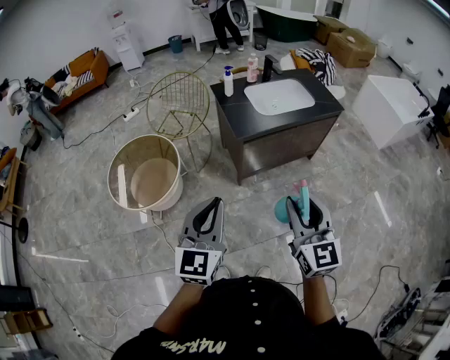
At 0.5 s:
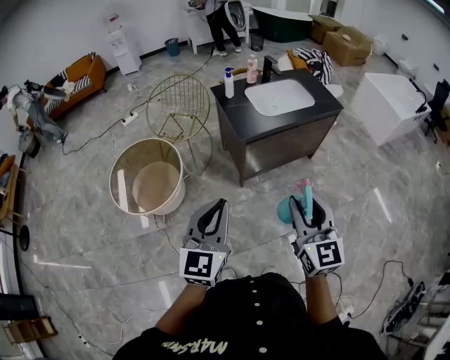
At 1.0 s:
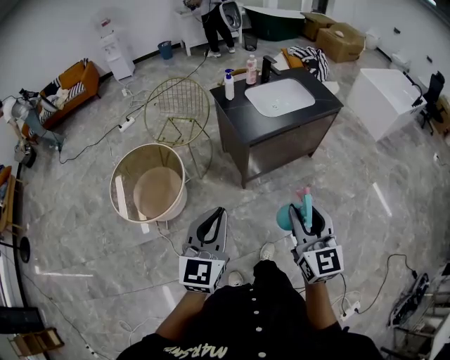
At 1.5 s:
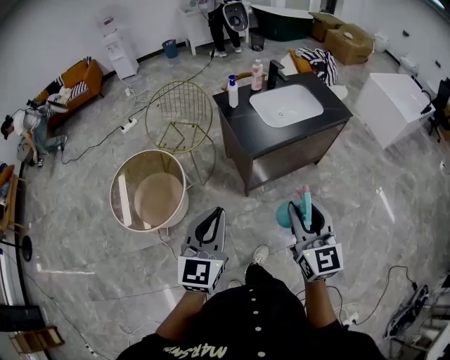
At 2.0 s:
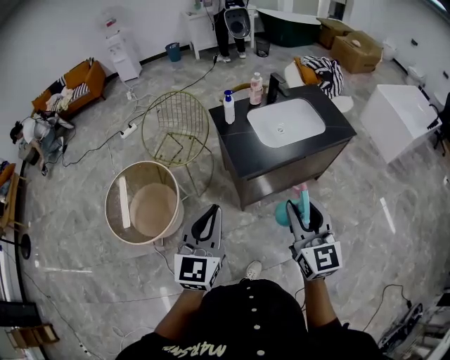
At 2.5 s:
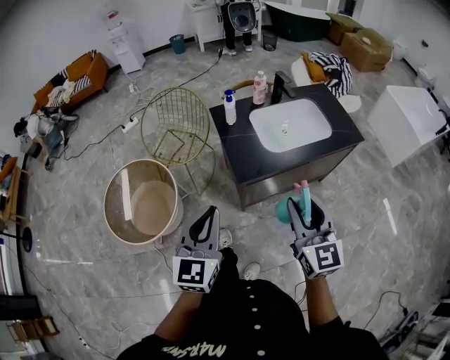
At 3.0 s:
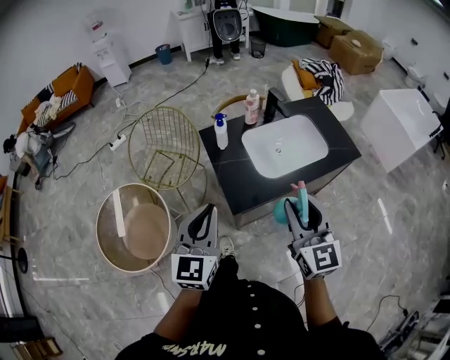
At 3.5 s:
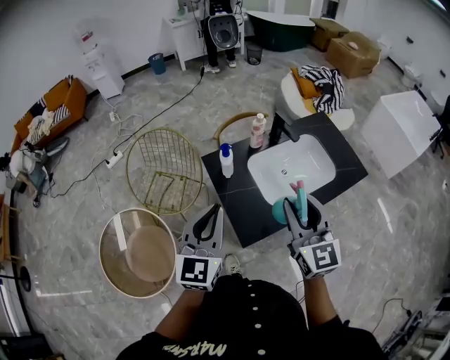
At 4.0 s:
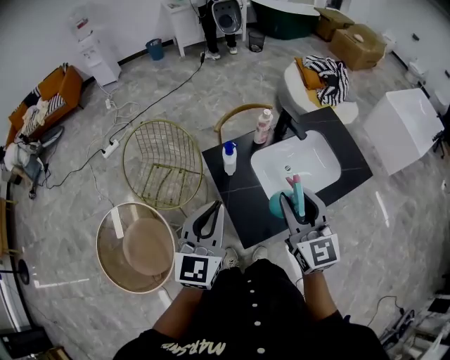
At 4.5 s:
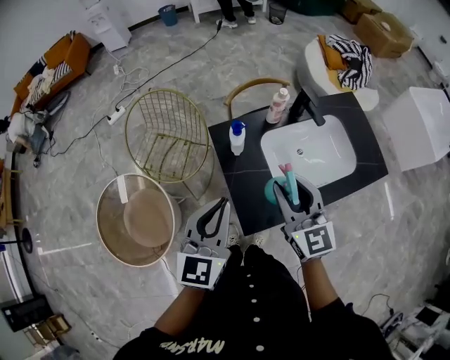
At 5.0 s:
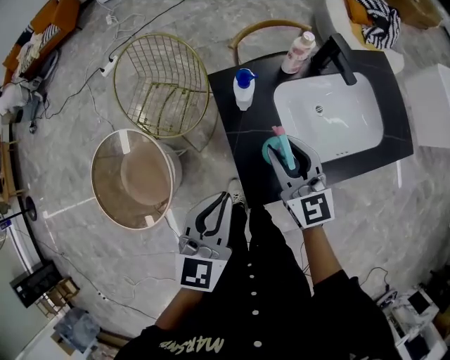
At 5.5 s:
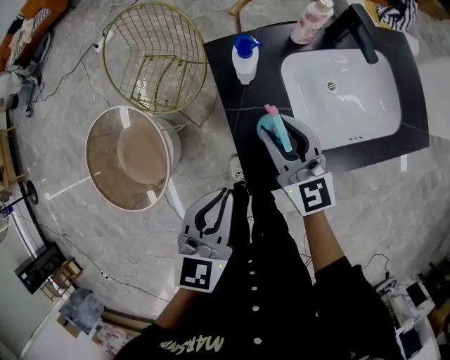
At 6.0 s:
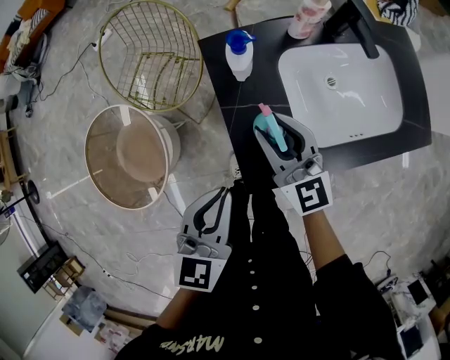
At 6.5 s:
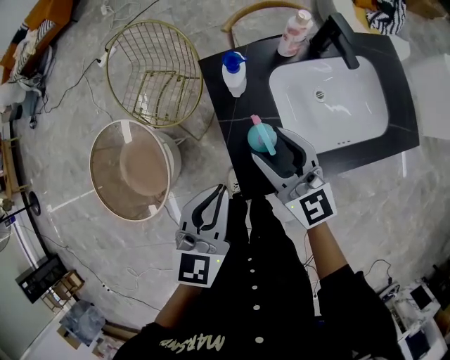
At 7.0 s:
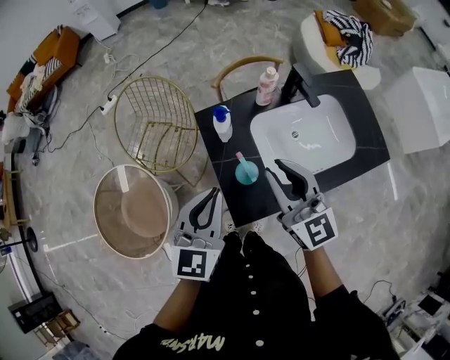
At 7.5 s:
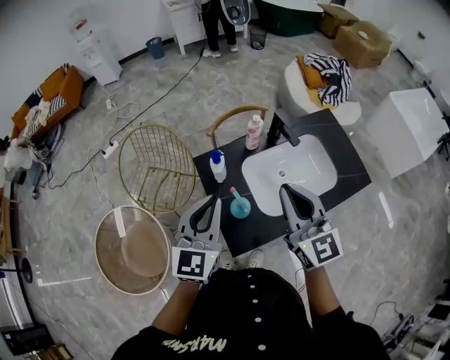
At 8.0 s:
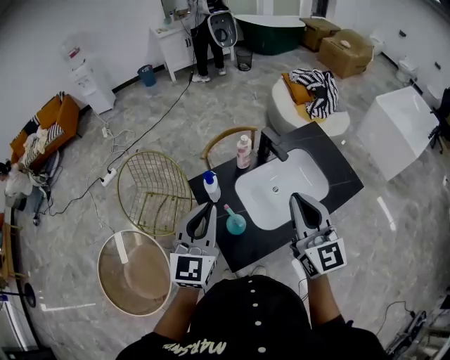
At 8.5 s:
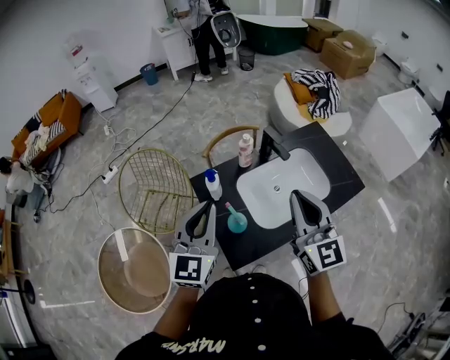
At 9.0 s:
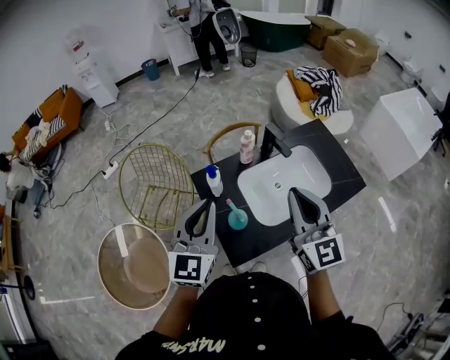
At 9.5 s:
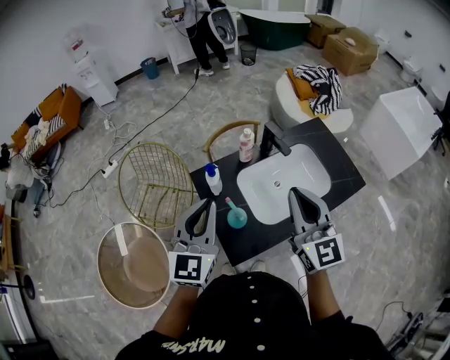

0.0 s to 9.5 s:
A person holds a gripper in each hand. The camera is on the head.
0.0 to 2.0 s: Both grippers travel together forward, some 20 cm.
2.0 to 4.0 s: Both grippers move forward, about 35 cm.
4.0 to 5.5 s: Both grippers move downward, some 20 cm. The left gripper turns by roughly 30 degrees. The right gripper changes its angle by about 20 degrees.
5.5 to 7.5 s: The left gripper heads upward and forward, covering some 20 cm, and swivels approximately 30 degrees. Meanwhile the right gripper goes approximately 25 cm upward and to the right, and closes.

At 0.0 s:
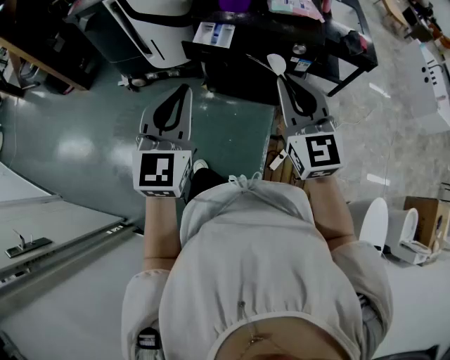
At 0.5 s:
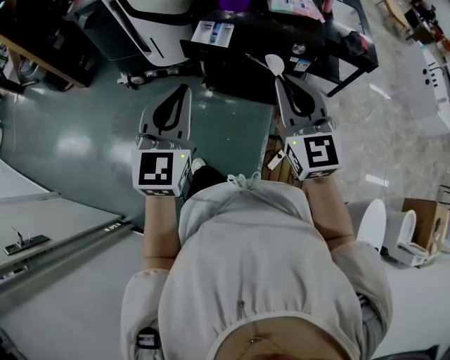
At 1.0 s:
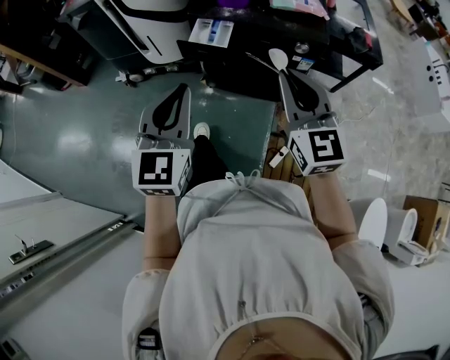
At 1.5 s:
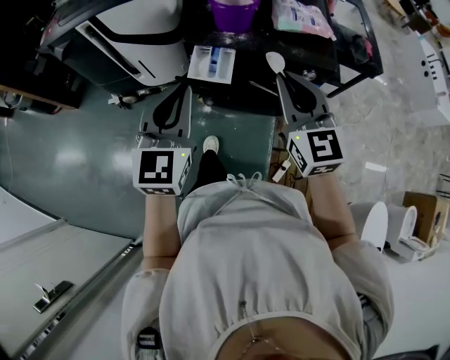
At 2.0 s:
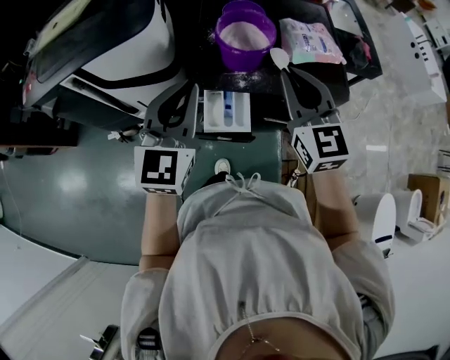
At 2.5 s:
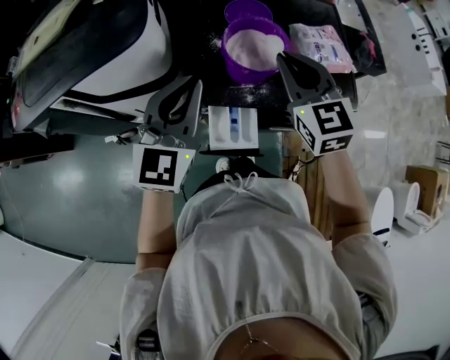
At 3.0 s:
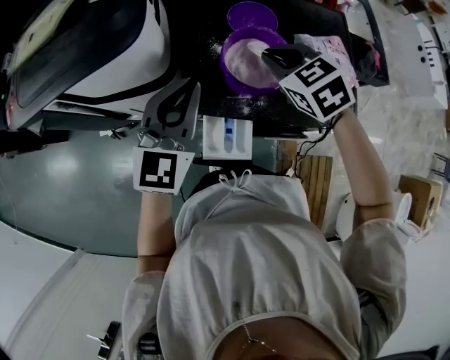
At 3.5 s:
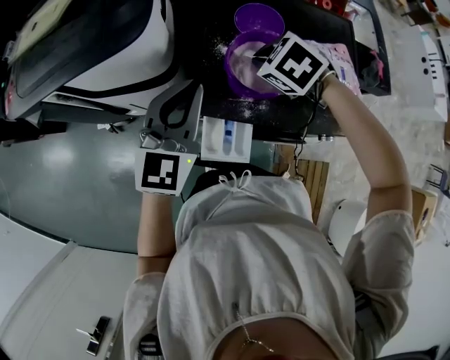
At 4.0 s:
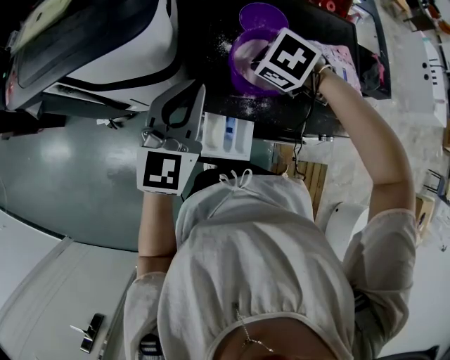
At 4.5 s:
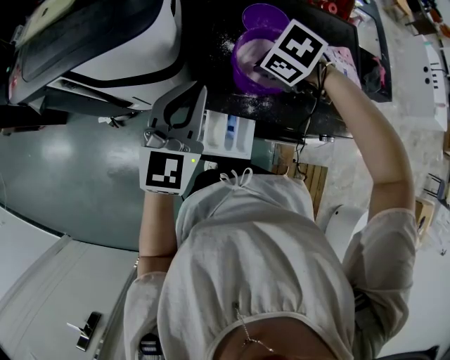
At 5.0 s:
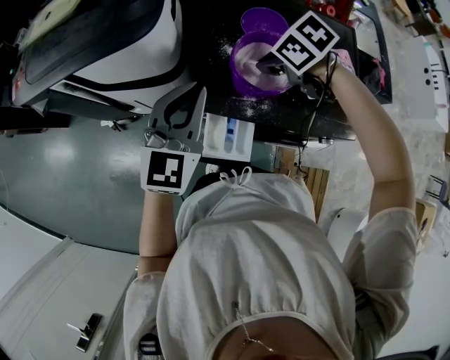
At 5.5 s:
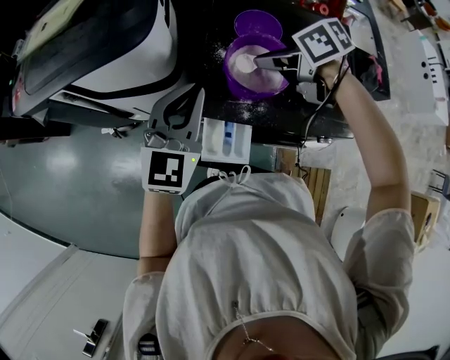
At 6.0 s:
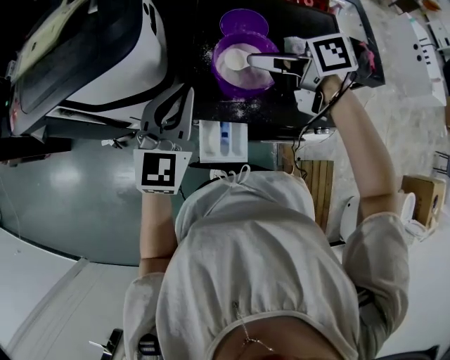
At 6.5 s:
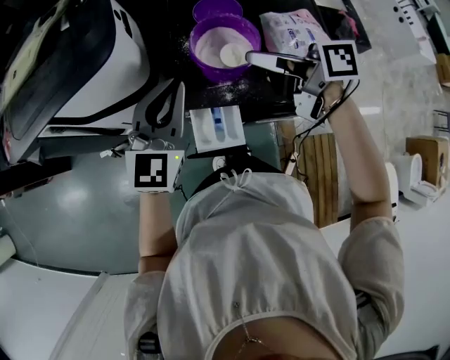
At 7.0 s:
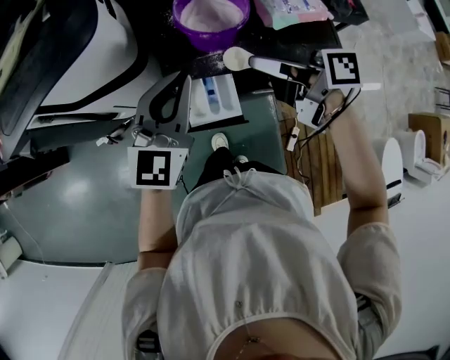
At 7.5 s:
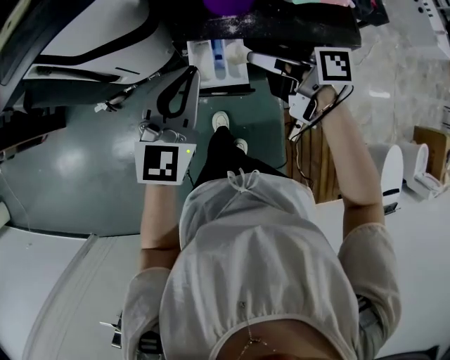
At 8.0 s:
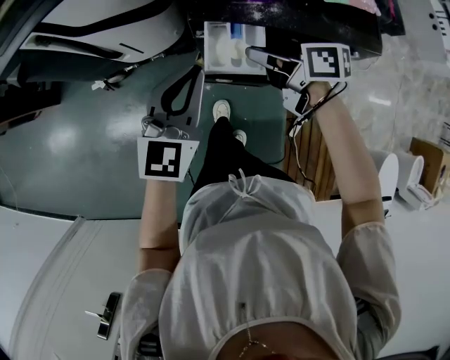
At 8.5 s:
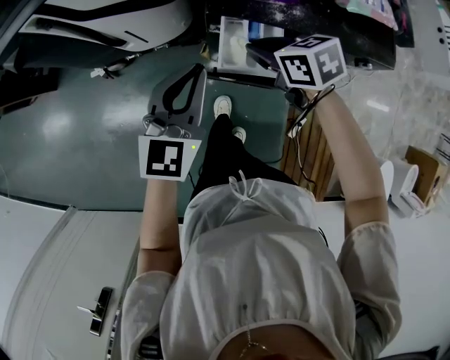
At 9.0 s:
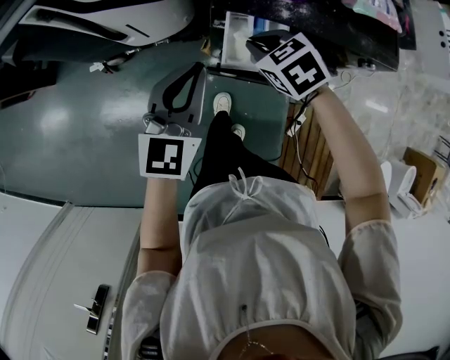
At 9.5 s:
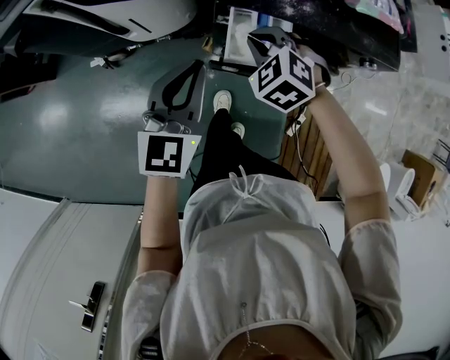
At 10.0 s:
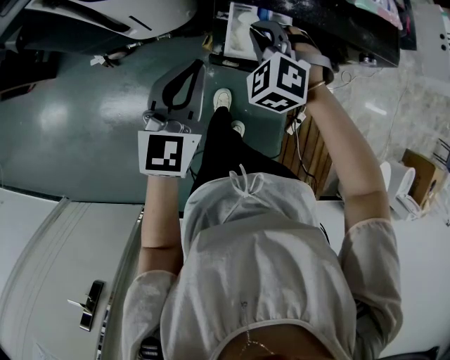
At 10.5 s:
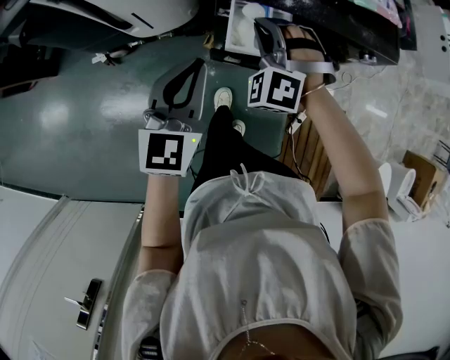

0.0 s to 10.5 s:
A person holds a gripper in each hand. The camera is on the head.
0.0 to 2.0 s: The pair of grippers is taken forward, approximately 40 cm.
2.0 to 4.0 s: The left gripper travels forward and downward by about 15 cm. Meanwhile the right gripper goes about 25 cm forward and downward, and tips its fingers downward by some 70 degrees.
4.0 to 6.5 s: The right gripper travels upward and backward by some 15 cm, and tips its fingers upward by some 60 degrees.
6.5 to 8.5 s: The left gripper goes some 20 cm downward, backward and to the left, while the right gripper is displaced downward and to the left by some 25 cm, and rotates some 40 degrees.
8.5 to 10.5 s: The right gripper rotates around the line of its fingers by some 70 degrees, counterclockwise from behind.

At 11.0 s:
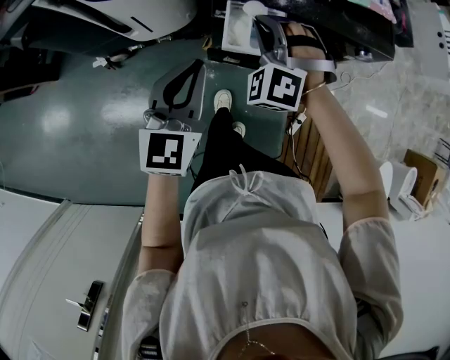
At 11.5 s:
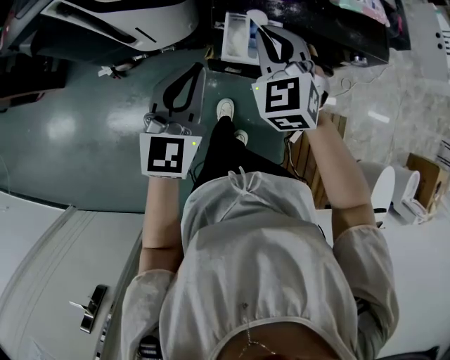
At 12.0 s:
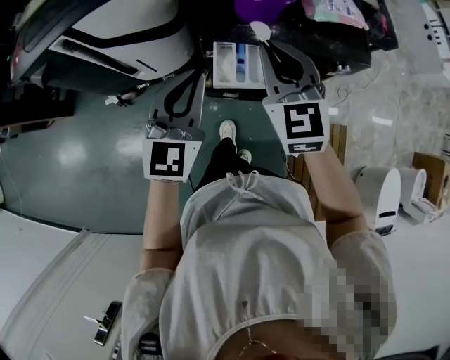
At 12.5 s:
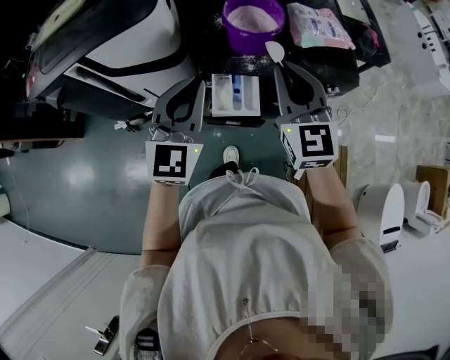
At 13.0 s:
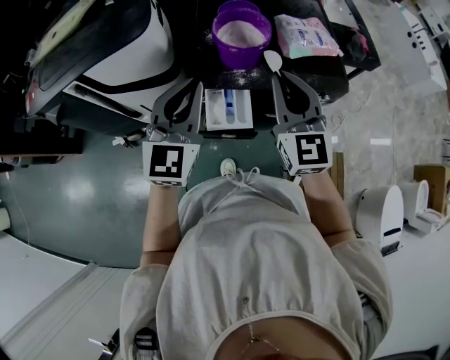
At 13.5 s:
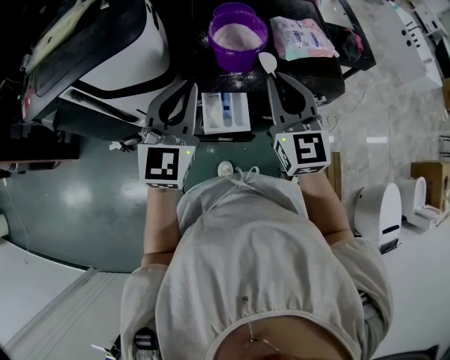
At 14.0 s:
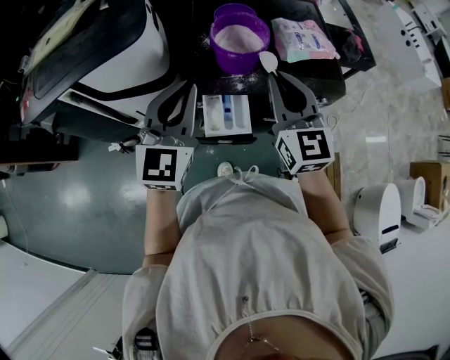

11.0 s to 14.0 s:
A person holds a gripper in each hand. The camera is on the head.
11.0 to 12.5 s: The right gripper goes about 25 cm upward and to the right, and twists about 60 degrees clockwise, seen from behind. Meanwhile the left gripper is displaced upward and forward by some 15 cm.
12.5 to 14.0 s: The left gripper moves about 5 cm.

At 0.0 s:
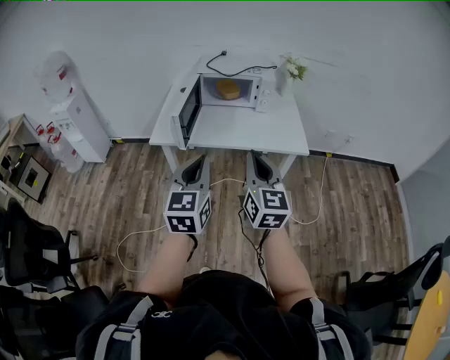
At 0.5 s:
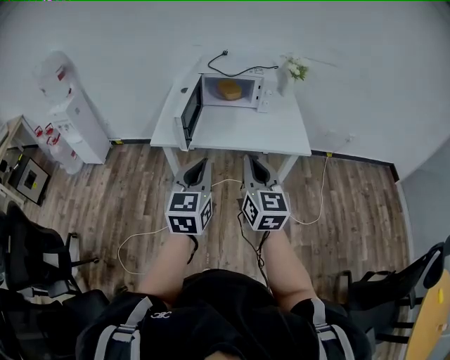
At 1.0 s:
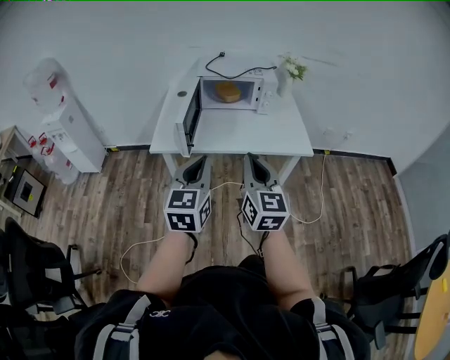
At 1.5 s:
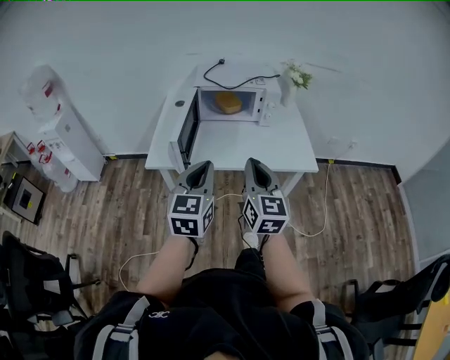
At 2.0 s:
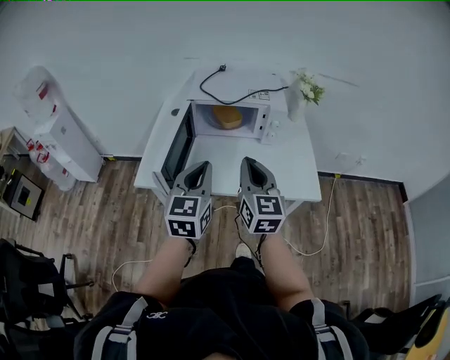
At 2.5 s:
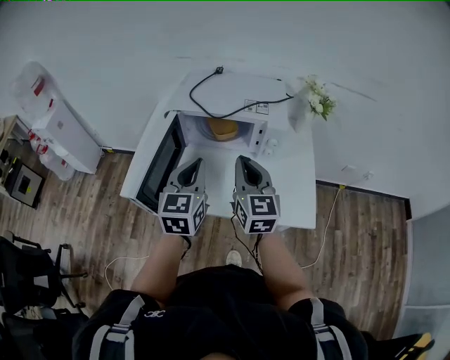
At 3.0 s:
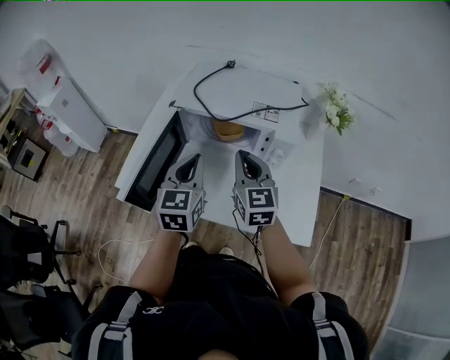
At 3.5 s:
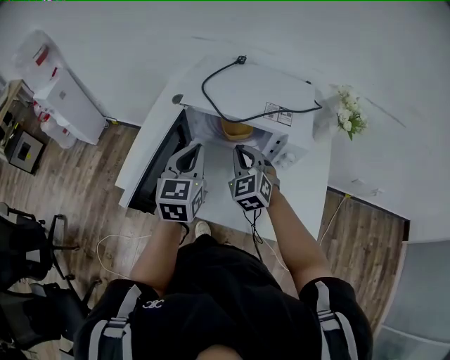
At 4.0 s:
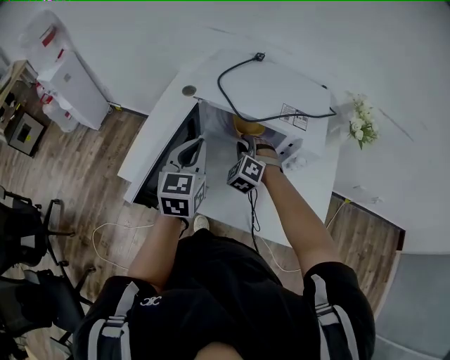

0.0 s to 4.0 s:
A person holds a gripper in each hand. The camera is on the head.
0.0 to 2.0 s: Both grippers travel together forward, about 30 cm.
2.0 to 4.0 s: The right gripper moves forward and downward, roughly 40 cm, rotates around the line of its fingers by some 70 degrees, counterclockwise from behind, and opens up; the left gripper is displaced forward by about 30 cm.
